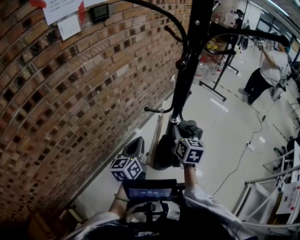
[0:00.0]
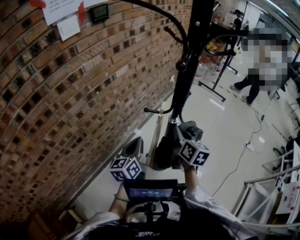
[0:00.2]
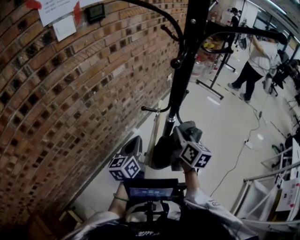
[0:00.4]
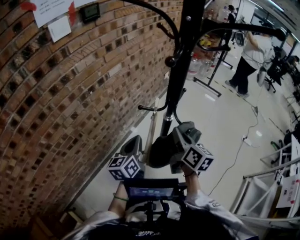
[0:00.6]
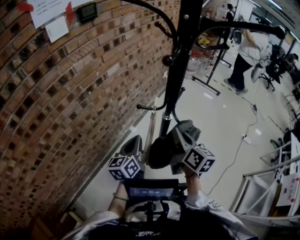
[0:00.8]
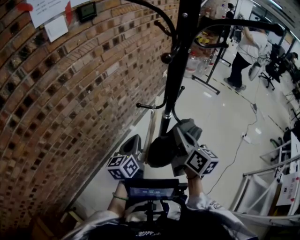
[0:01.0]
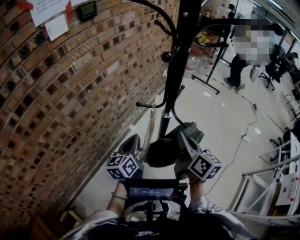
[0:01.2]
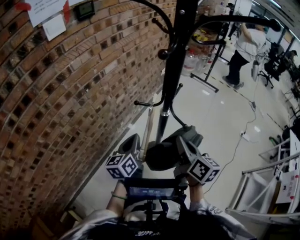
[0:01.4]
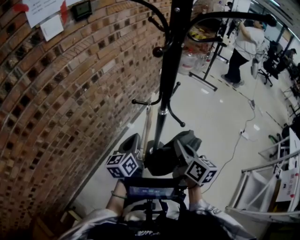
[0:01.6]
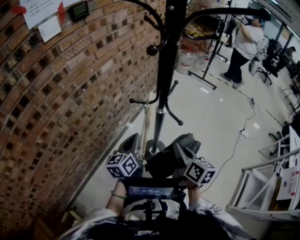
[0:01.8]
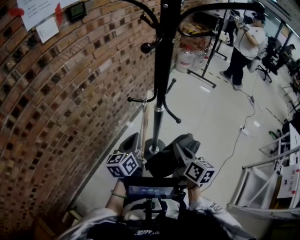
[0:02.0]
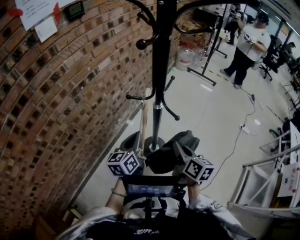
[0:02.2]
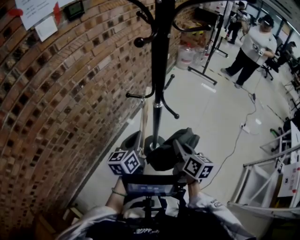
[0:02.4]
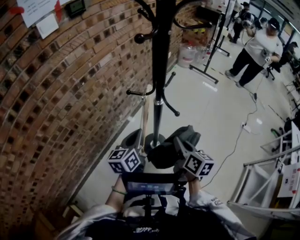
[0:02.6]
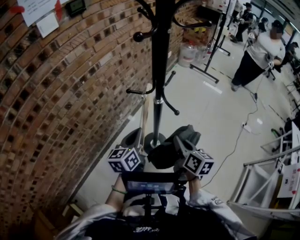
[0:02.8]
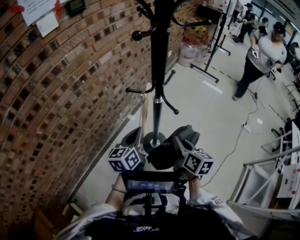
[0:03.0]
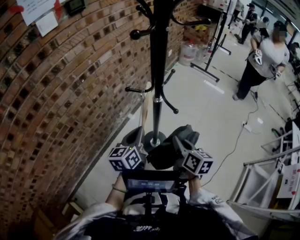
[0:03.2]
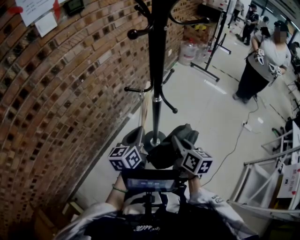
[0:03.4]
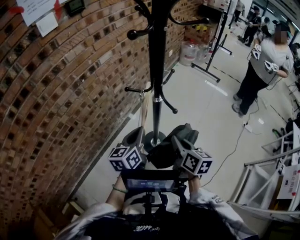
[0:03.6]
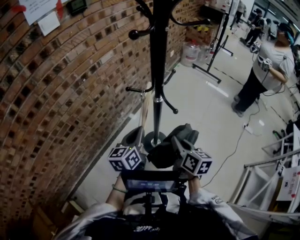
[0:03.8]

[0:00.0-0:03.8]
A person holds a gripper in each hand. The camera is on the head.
0.0 to 1.2 s: The right gripper is displaced backward and upward by roughly 10 cm, and changes its angle by about 30 degrees.
1.2 to 2.6 s: The right gripper moves downward, approximately 10 cm, while the left gripper is displaced to the right by roughly 5 cm.
2.6 to 3.8 s: The grippers stay close to where they were, moving slightly.

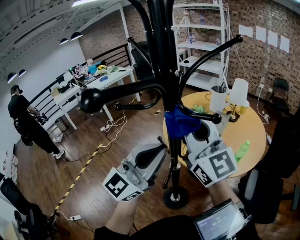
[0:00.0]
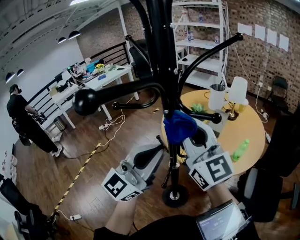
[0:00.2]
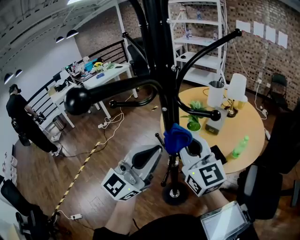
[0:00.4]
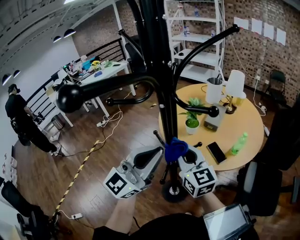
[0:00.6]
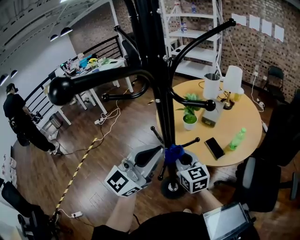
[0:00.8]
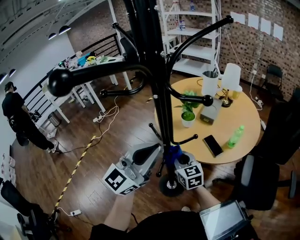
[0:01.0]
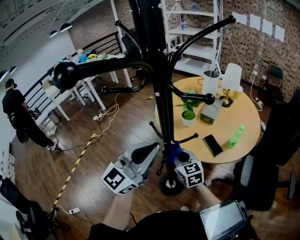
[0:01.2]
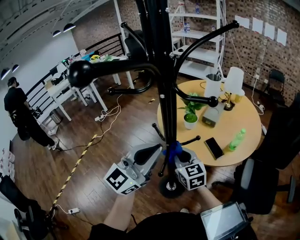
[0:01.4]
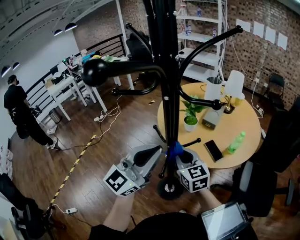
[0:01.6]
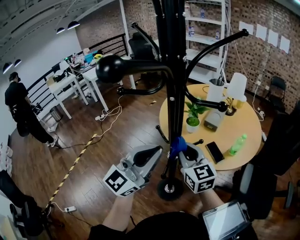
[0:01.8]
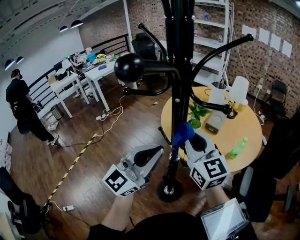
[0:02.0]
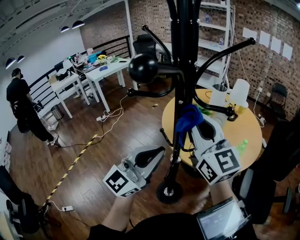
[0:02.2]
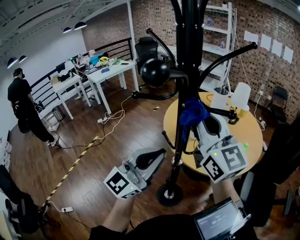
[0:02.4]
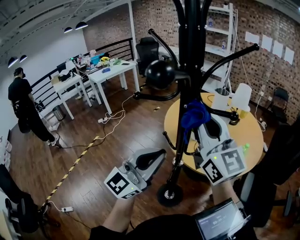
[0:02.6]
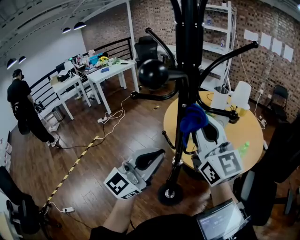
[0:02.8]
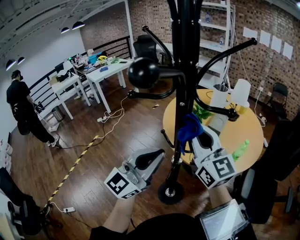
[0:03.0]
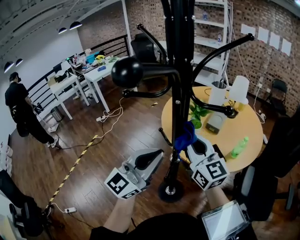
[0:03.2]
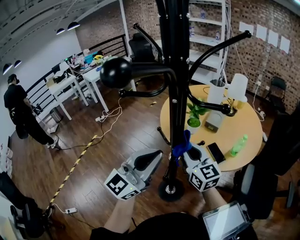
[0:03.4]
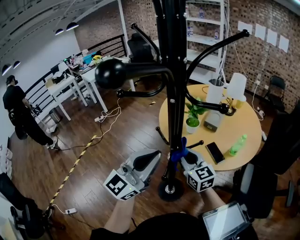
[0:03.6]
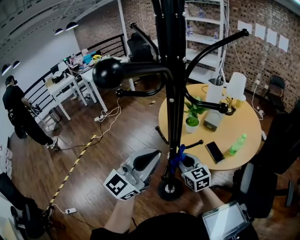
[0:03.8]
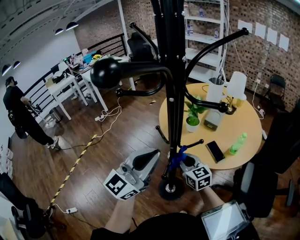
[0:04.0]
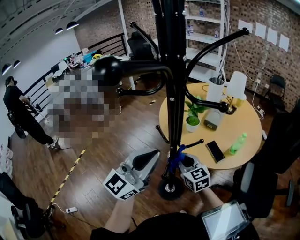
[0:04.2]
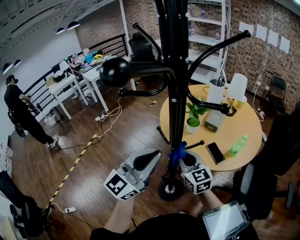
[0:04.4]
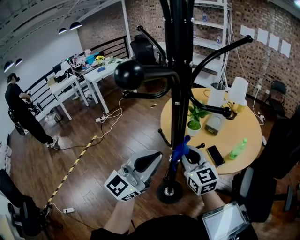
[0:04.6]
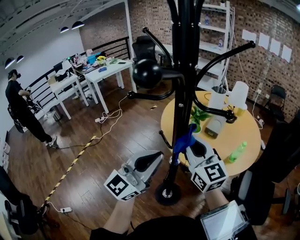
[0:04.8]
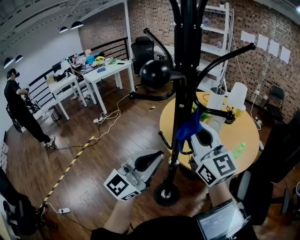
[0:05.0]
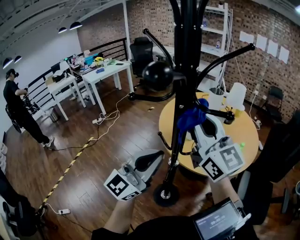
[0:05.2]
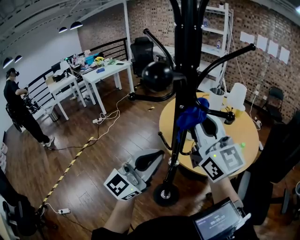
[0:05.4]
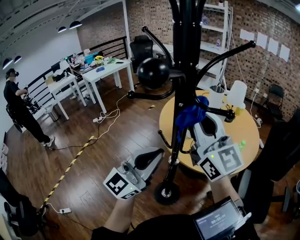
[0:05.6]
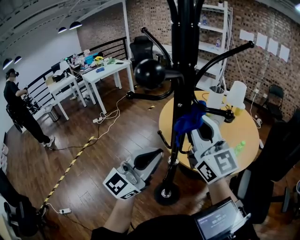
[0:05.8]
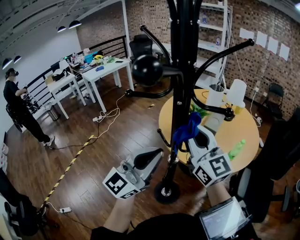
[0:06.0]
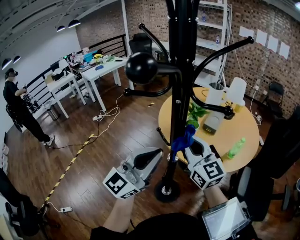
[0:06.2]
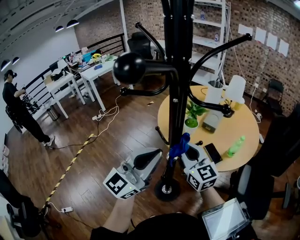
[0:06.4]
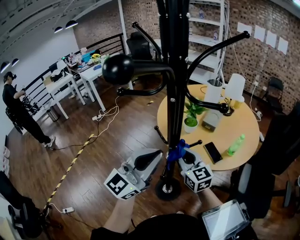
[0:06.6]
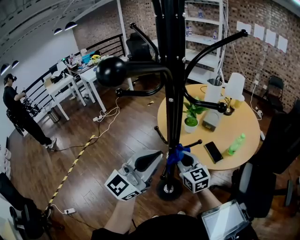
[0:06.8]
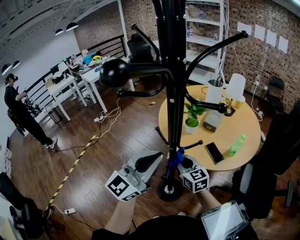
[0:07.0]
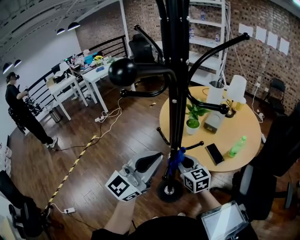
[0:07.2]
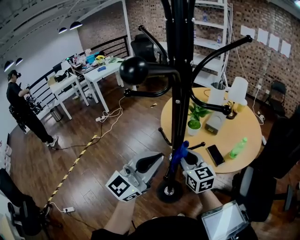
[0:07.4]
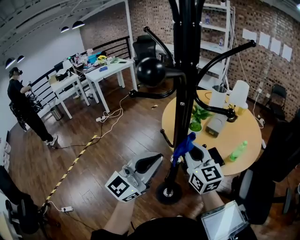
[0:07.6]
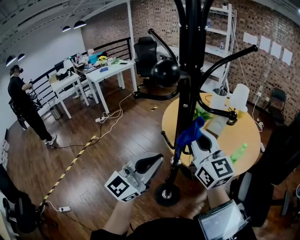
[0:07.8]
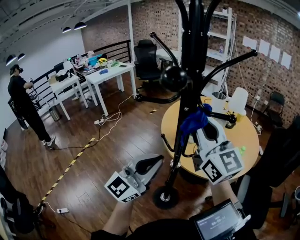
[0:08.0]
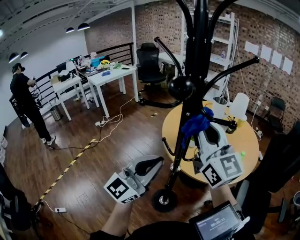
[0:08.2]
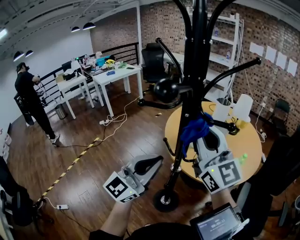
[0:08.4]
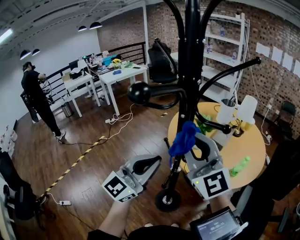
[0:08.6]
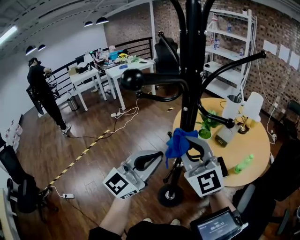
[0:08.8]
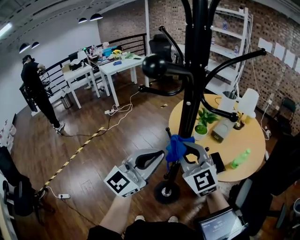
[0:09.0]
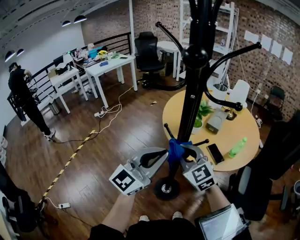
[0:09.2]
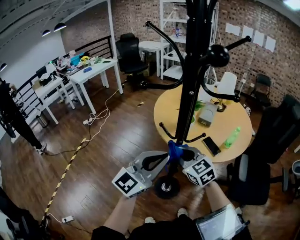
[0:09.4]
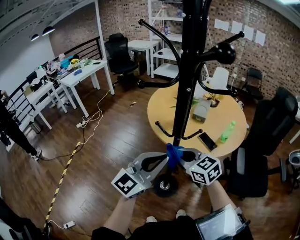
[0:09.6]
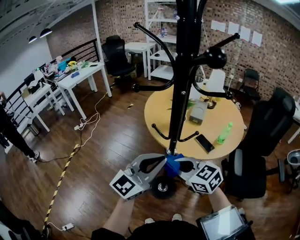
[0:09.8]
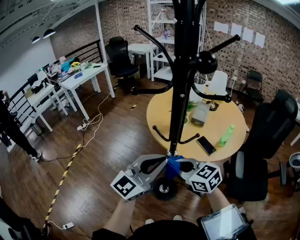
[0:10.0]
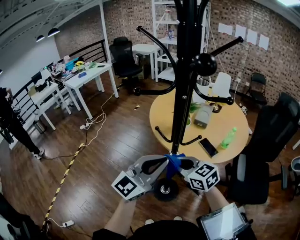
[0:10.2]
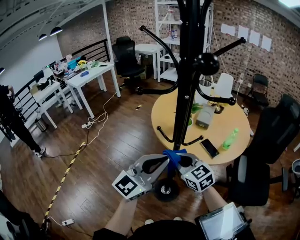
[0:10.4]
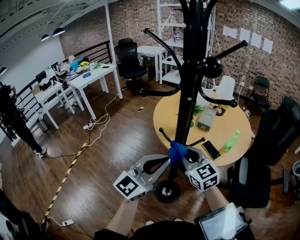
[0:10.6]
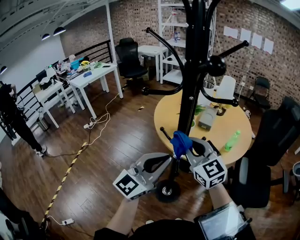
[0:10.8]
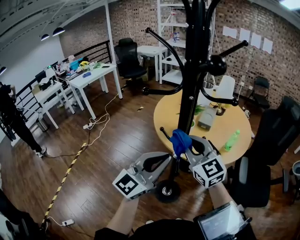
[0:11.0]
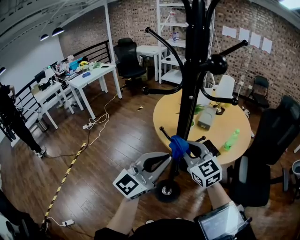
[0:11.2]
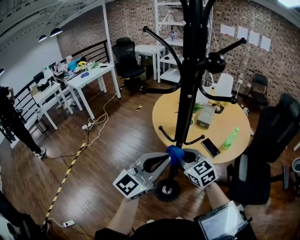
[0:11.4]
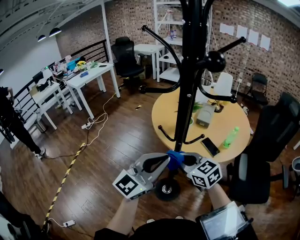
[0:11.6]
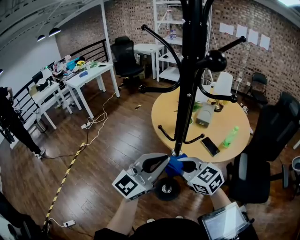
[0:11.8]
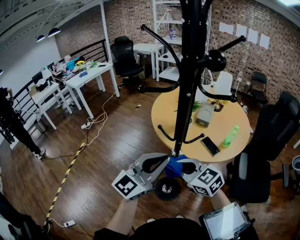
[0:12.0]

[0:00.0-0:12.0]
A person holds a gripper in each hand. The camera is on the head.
0.0 to 1.6 s: The left gripper is displaced downward by some 5 cm. The right gripper shifts about 25 cm downward, and points its fingers about 40 degrees further downward.
1.6 to 3.0 s: The right gripper heads upward, covering some 20 cm, and rotates approximately 30 degrees.
3.0 to 4.4 s: The right gripper moves downward, about 20 cm, and turns by about 20 degrees.
4.4 to 6.0 s: The right gripper moves upward, roughly 20 cm, and swivels about 20 degrees.
6.0 to 7.6 s: The right gripper shifts roughly 10 cm downward.
7.6 to 9.0 s: The right gripper moves some 20 cm upward and comes back, and changes its angle by approximately 30 degrees.
9.0 to 10.4 s: The right gripper shifts approximately 10 cm downward, and rotates roughly 30 degrees.
10.4 to 12.0 s: The right gripper goes approximately 5 cm backward, and travels upward and back again, roughly 10 cm each way.

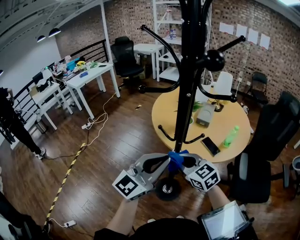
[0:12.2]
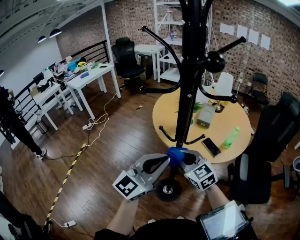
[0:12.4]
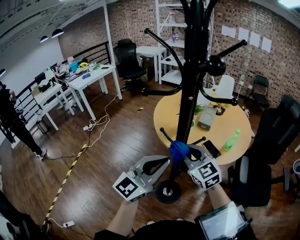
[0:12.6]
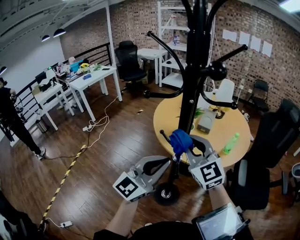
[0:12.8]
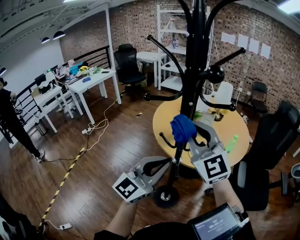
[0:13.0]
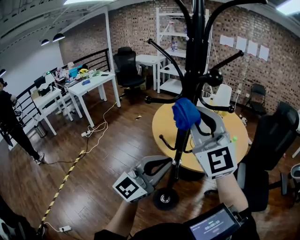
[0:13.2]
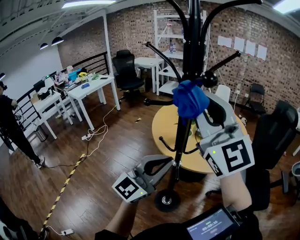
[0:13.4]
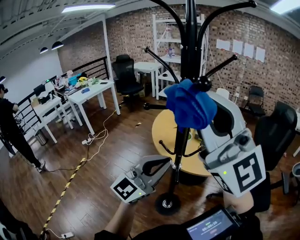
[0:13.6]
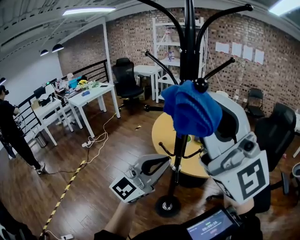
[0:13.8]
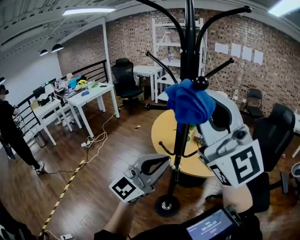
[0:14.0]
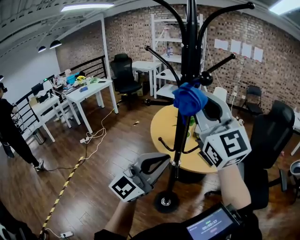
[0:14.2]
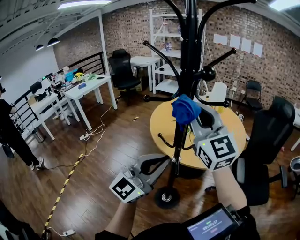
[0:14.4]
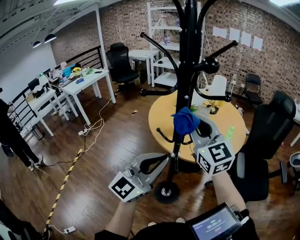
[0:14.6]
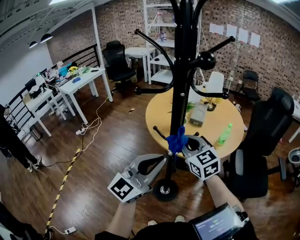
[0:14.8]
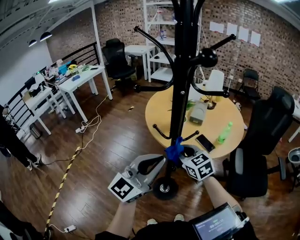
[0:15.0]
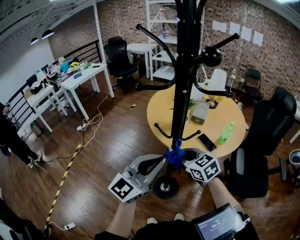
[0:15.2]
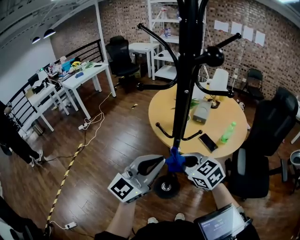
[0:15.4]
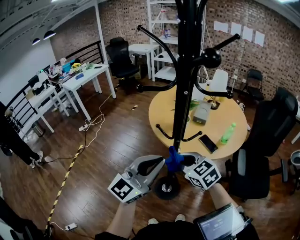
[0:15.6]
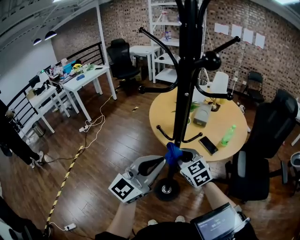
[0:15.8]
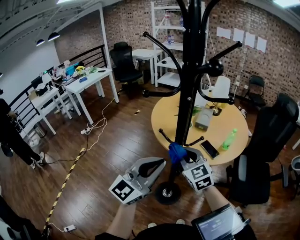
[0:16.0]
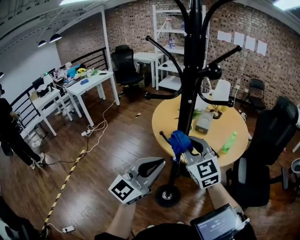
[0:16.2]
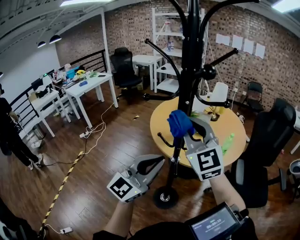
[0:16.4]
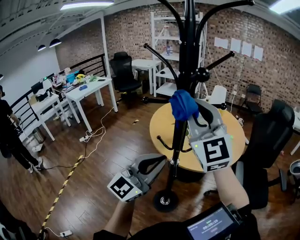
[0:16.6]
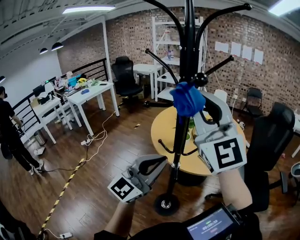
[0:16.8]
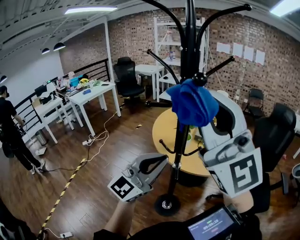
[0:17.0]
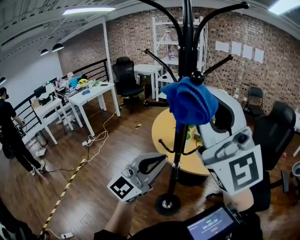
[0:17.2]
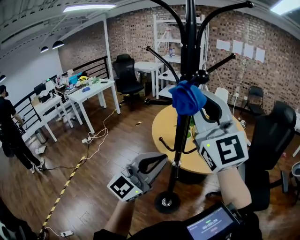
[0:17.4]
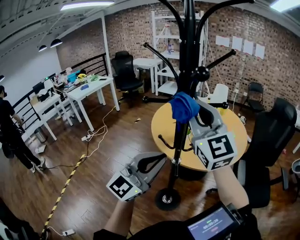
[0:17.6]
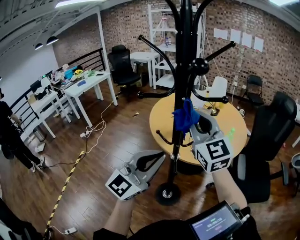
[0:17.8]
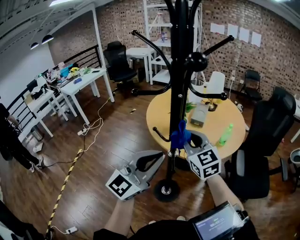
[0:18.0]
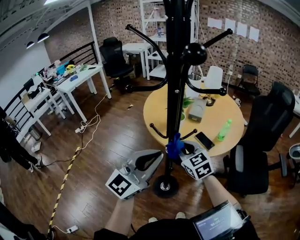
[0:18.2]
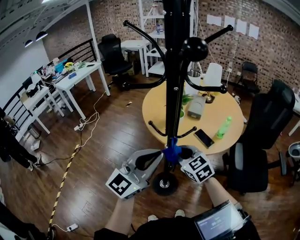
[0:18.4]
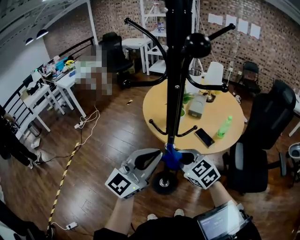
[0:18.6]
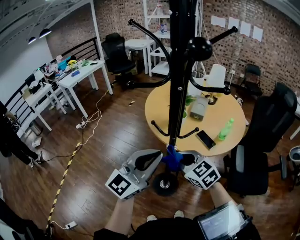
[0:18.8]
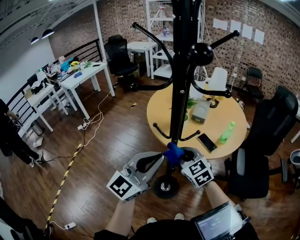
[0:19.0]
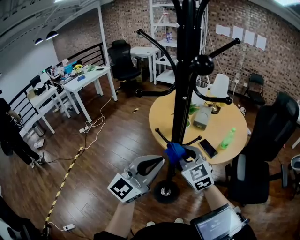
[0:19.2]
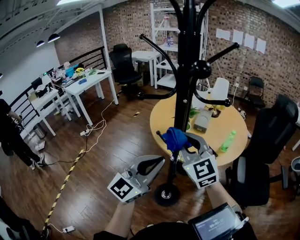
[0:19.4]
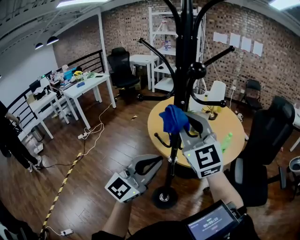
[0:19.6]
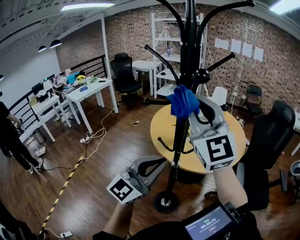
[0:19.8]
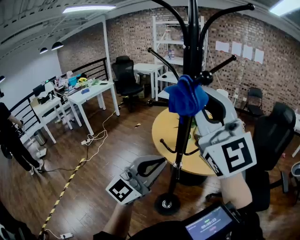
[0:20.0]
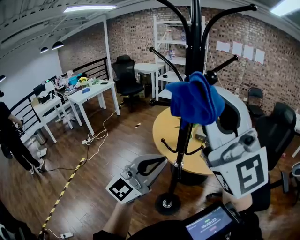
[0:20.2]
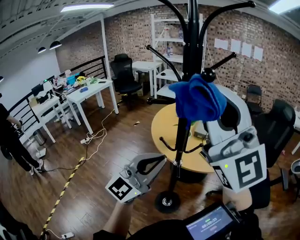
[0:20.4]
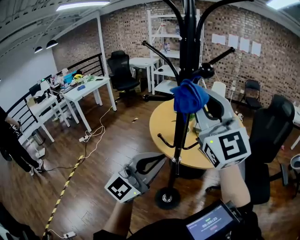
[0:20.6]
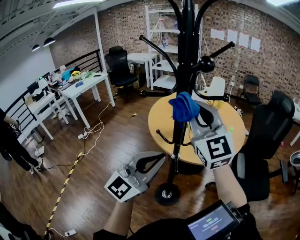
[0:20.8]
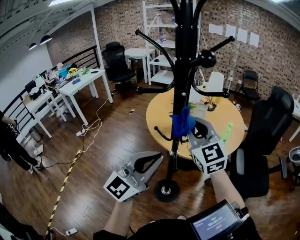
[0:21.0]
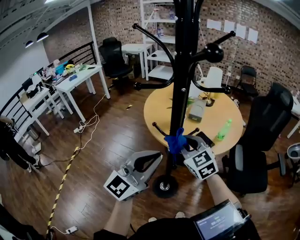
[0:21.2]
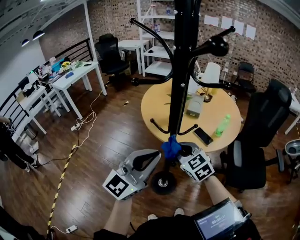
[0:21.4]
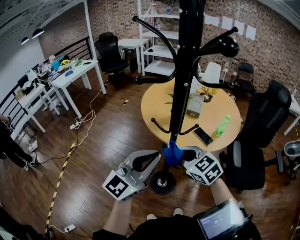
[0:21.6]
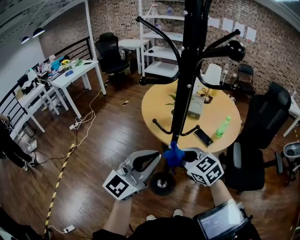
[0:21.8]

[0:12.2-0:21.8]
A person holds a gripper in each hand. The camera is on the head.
12.2 to 13.8 s: The right gripper goes about 40 cm upward, and tilts its fingers some 60 degrees upward. Meanwhile the left gripper is displaced upward by approximately 10 cm.
13.8 to 15.4 s: The left gripper moves downward, about 10 cm, while the right gripper is displaced downward by some 40 cm, and tilts its fingers about 60 degrees downward.
15.4 to 17.0 s: The right gripper shifts approximately 40 cm upward, and tips its fingers upward by some 60 degrees. The left gripper travels upward by some 10 cm.
17.0 to 18.6 s: The left gripper goes roughly 10 cm downward. The right gripper is displaced downward by roughly 40 cm, and angles its fingers downward, by roughly 60 degrees.
18.6 to 20.2 s: The right gripper moves upward, approximately 40 cm, and tips its fingers upward by about 60 degrees; the left gripper goes approximately 5 cm upward.
20.2 to 21.8 s: The left gripper shifts about 5 cm downward; the right gripper goes approximately 40 cm downward, and points its fingers some 60 degrees further downward.
